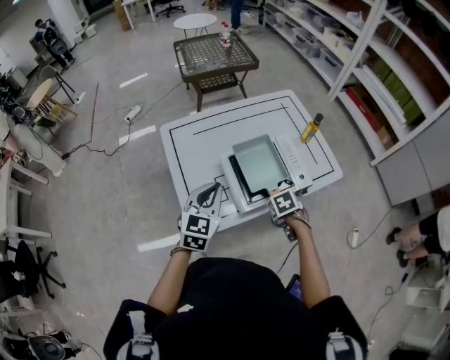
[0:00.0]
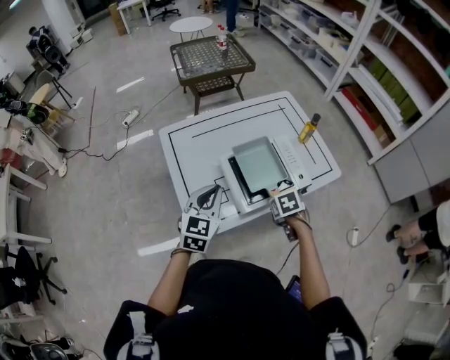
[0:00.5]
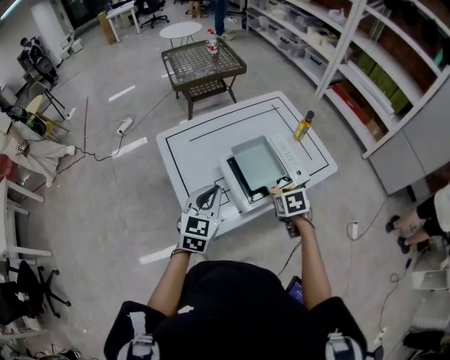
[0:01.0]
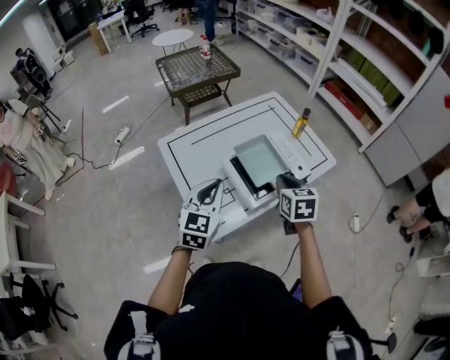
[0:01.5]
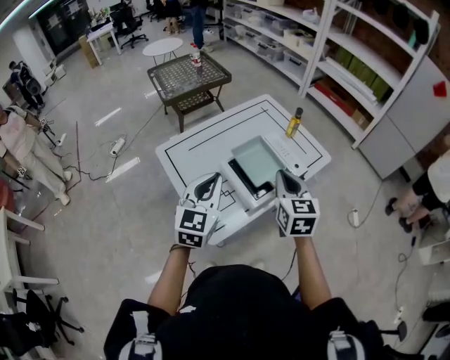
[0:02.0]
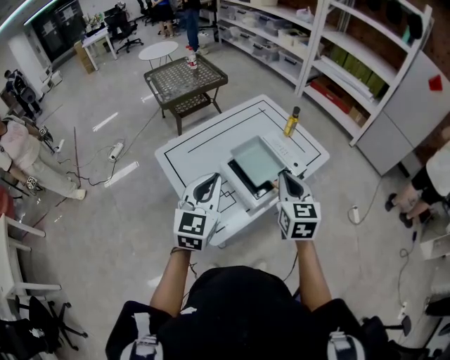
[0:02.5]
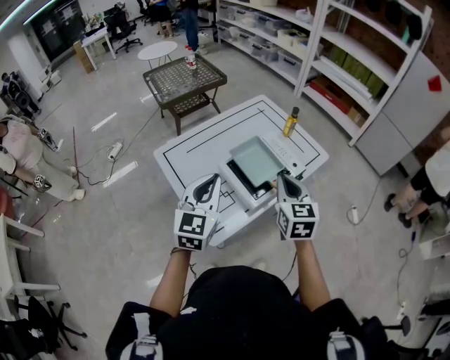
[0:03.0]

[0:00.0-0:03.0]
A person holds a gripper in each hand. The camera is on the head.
0:00.0 to 0:01.5: The right gripper is displaced upward by about 20 cm, tips its fingers upward by approximately 40 degrees, and opens, then closes again, while the left gripper heads upward, covering some 5 cm.
0:01.5 to 0:03.0: The two grippers go about 5 cm upward.

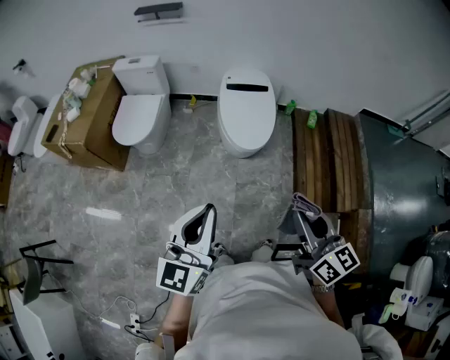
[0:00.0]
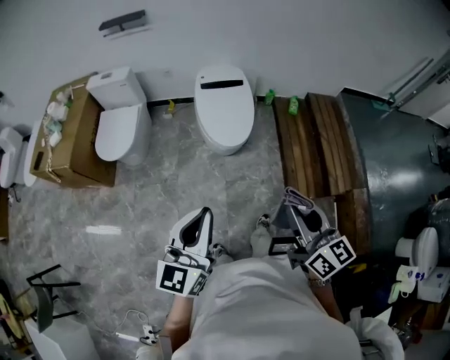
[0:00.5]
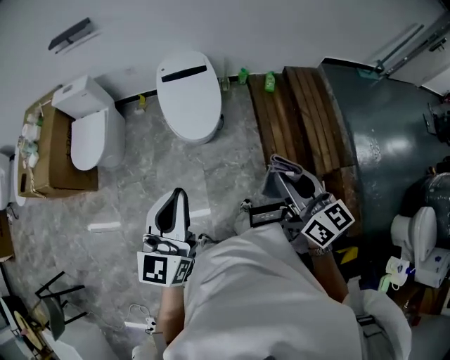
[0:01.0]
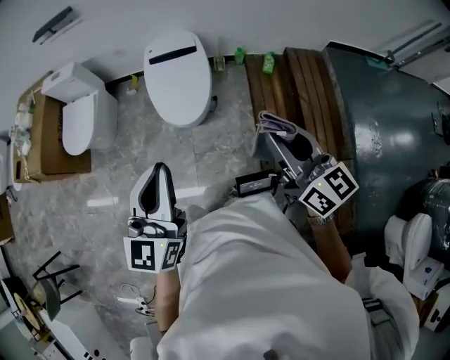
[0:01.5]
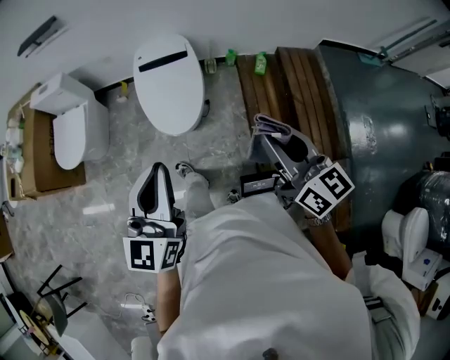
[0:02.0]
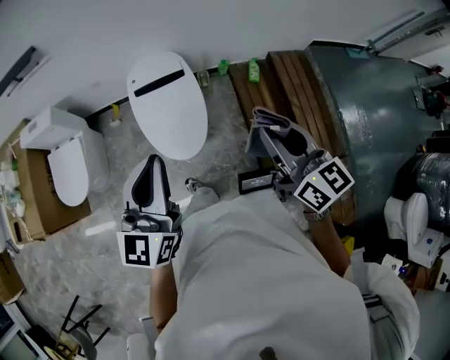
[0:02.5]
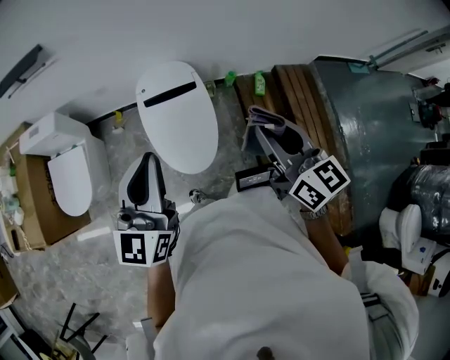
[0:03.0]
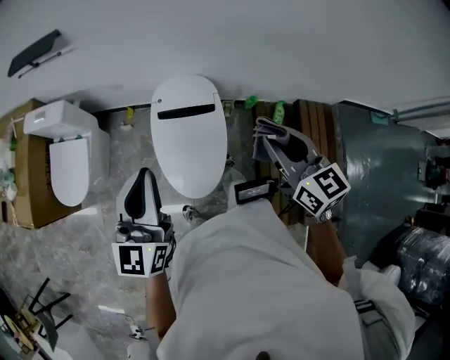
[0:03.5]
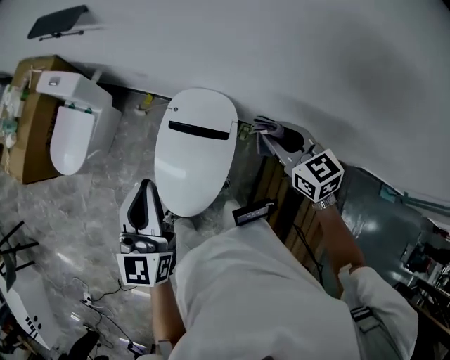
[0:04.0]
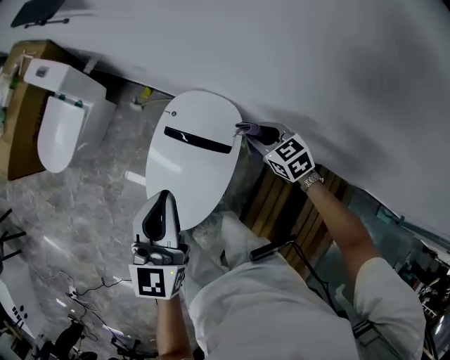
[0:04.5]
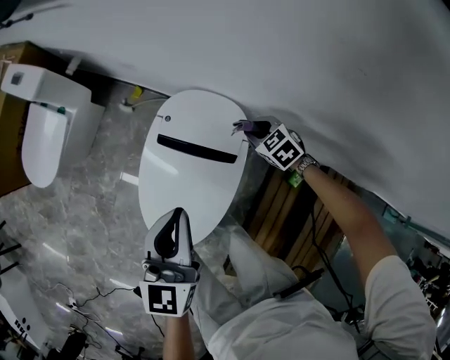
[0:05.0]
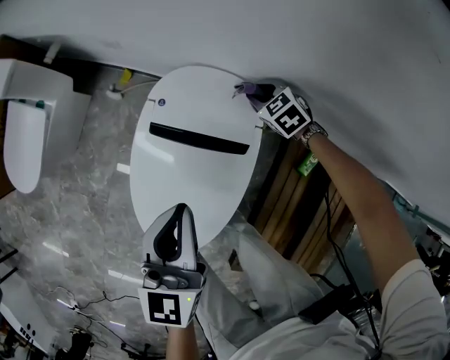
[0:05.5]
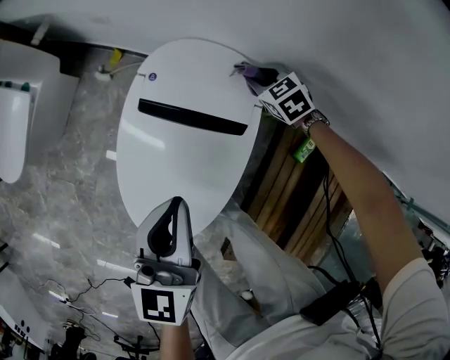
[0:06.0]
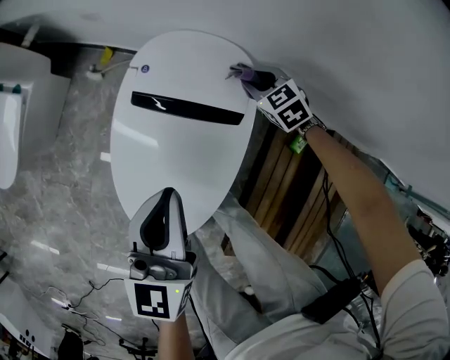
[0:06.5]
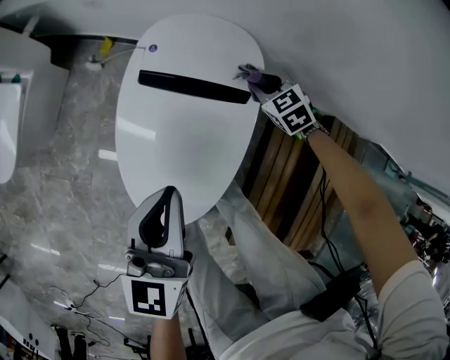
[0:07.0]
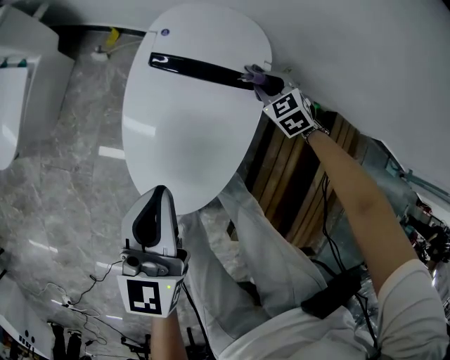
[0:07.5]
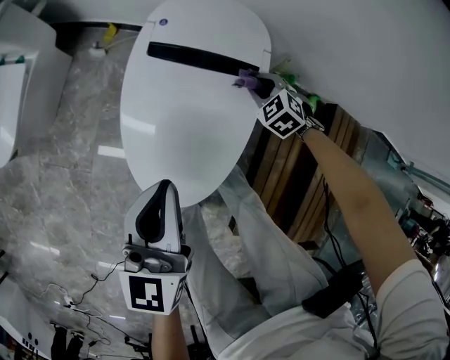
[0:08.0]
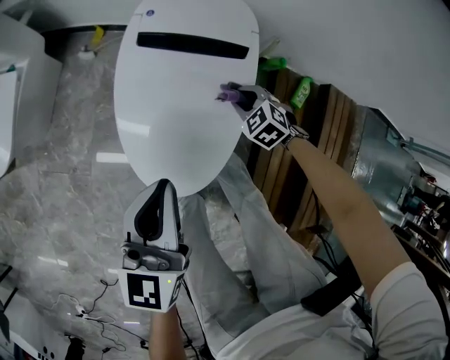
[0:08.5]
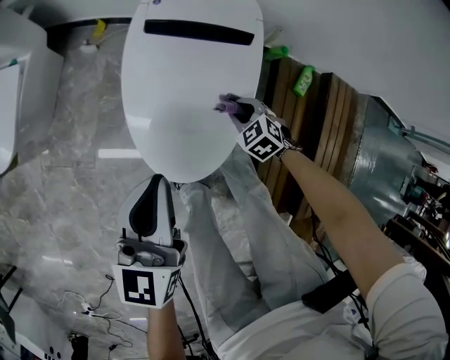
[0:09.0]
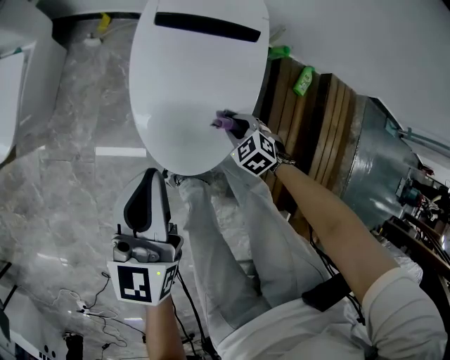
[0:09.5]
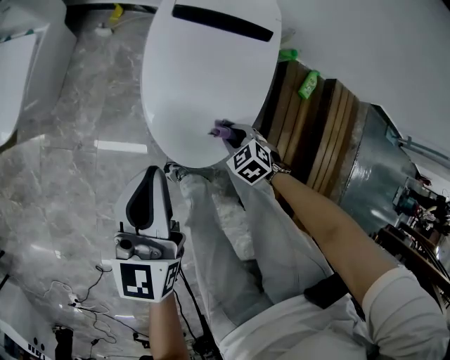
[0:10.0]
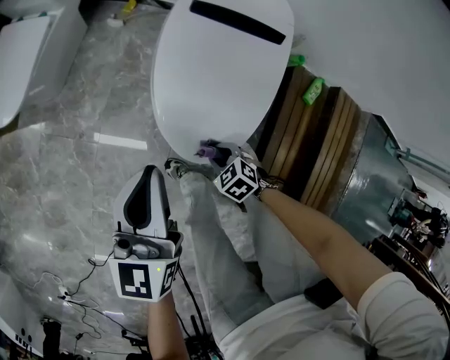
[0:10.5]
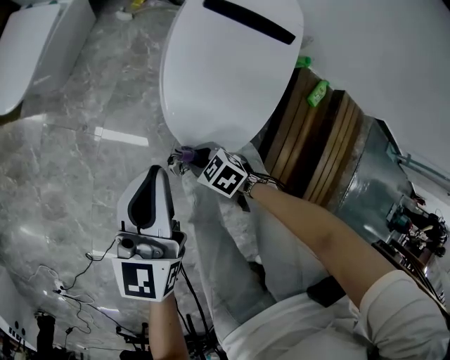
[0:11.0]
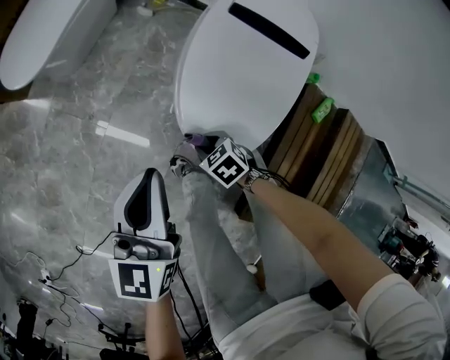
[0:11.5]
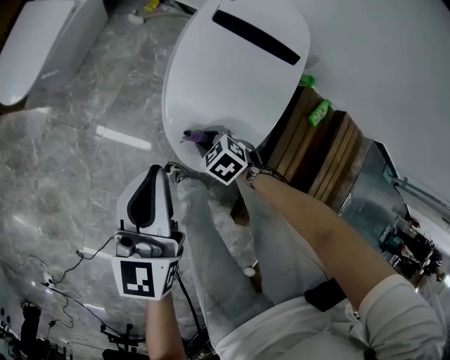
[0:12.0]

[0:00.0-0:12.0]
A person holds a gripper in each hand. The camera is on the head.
0:00.0 to 0:02.0: The grippers both shift to the right and forward by roughly 35 cm.
0:02.0 to 0:04.0: The pair of grippers is taken approximately 60 cm. The right gripper turns by roughly 40 degrees. The left gripper swivels roughly 30 degrees.
0:04.0 to 0:06.0: The two grippers go some 40 cm downward. The right gripper changes its angle by approximately 30 degrees.
0:06.0 to 0:08.0: The left gripper goes about 15 cm backward and to the left. The right gripper moves backward, roughly 20 cm.
0:08.0 to 0:10.0: The right gripper travels backward and to the left by roughly 30 cm, while the left gripper shifts approximately 15 cm to the left and backward.
0:10.0 to 0:12.0: The right gripper ends up roughly 15 cm from where it was.

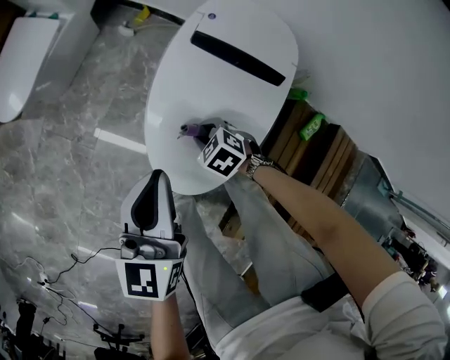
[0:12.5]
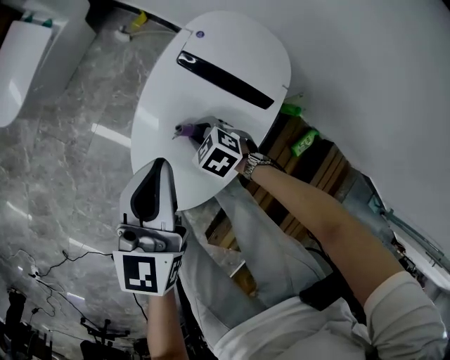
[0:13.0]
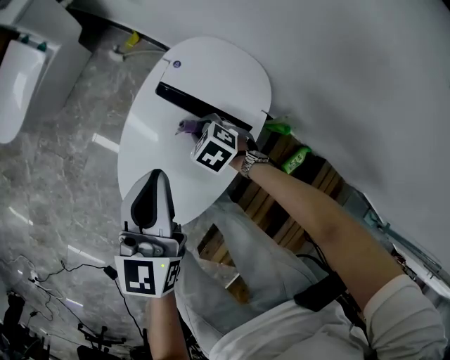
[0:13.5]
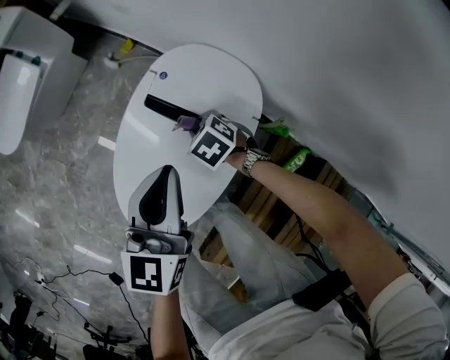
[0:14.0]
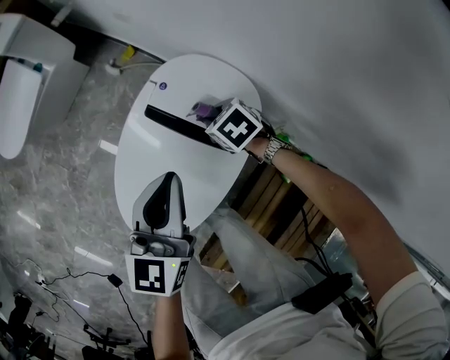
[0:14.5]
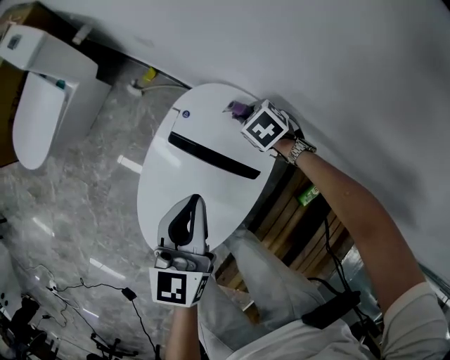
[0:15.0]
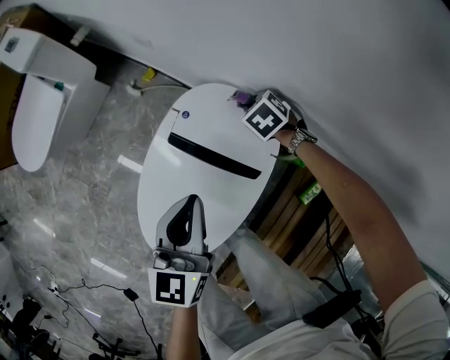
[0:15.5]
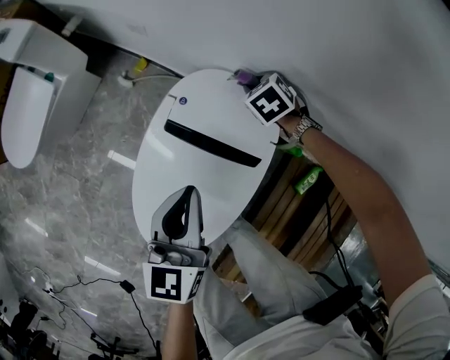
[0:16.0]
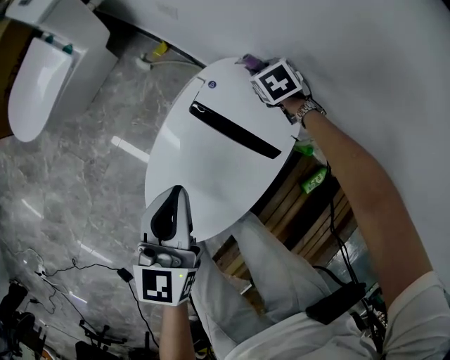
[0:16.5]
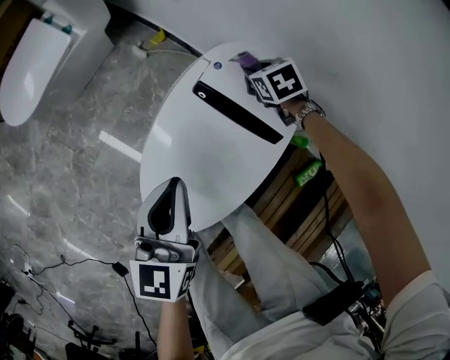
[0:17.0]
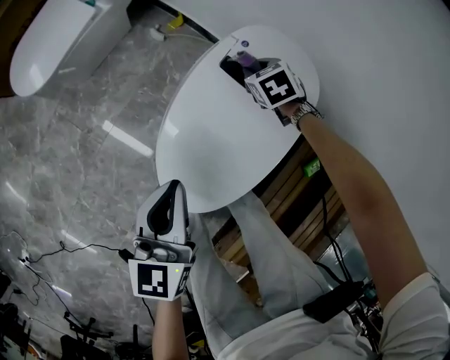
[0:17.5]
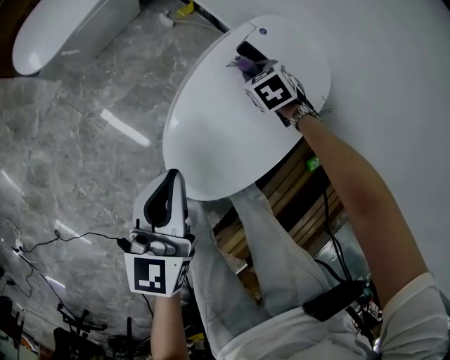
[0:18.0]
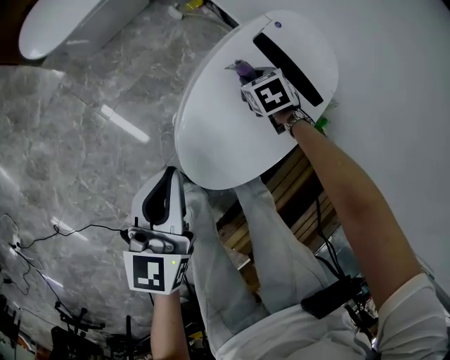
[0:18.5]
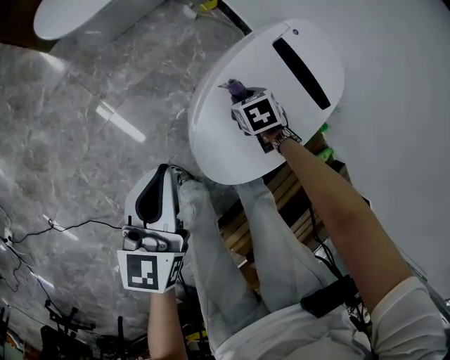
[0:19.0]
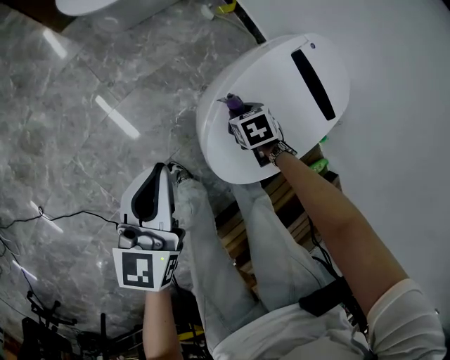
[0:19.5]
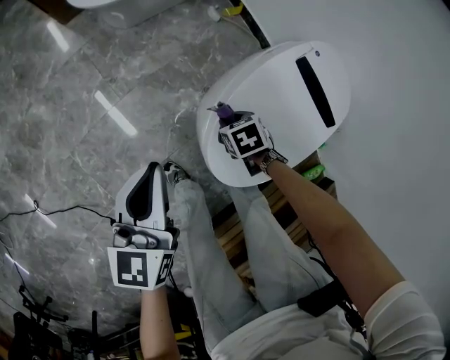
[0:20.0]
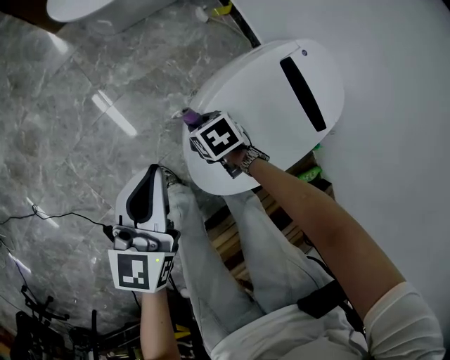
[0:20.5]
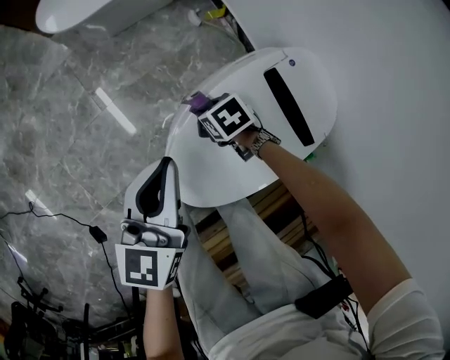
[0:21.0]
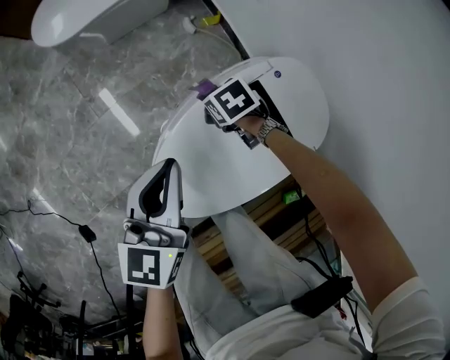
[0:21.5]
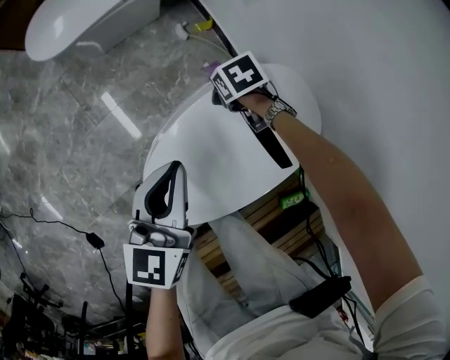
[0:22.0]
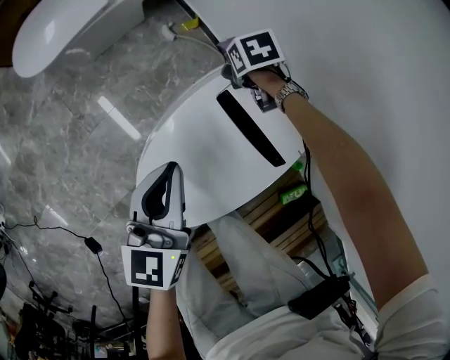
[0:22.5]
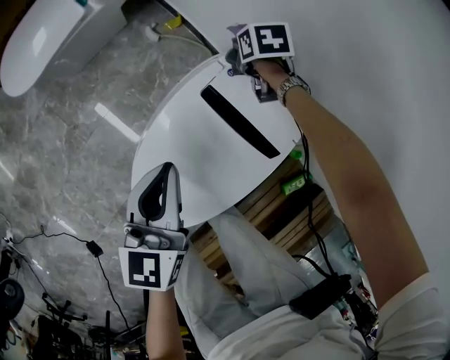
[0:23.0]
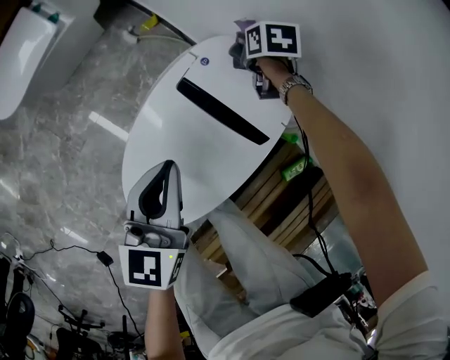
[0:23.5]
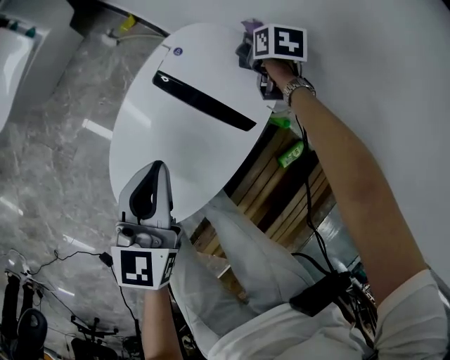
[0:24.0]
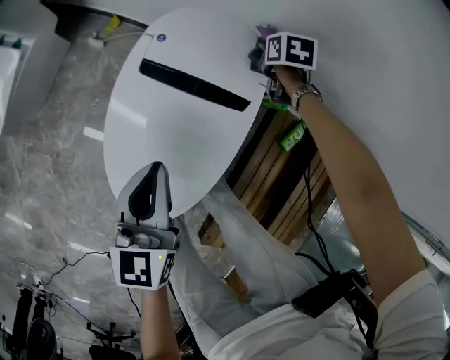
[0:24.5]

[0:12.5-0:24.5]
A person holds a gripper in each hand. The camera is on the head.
0:12.5 to 0:14.5: The left gripper changes place by about 25 cm, while the right gripper moves about 30 cm.
0:14.5 to 0:16.5: The right gripper shifts by about 15 cm, and turns by roughly 20 degrees. Meanwhile the left gripper changes place by roughly 10 cm.
0:16.5 to 0:18.5: Both grippers move backward and to the left, approximately 30 cm.
0:18.5 to 0:20.5: The right gripper moves some 25 cm, and rotates some 20 degrees.
0:20.5 to 0:22.5: The left gripper shifts by approximately 30 cm. Meanwhile the right gripper changes place by roughly 40 cm.
0:22.5 to 0:24.5: The right gripper ends up about 35 cm from where it was, and rotates around the line of its fingers by approximately 40 degrees, clockwise from behind; the left gripper changes place by some 15 cm, and swivels approximately 20 degrees.
